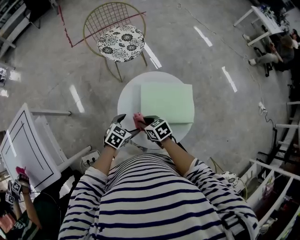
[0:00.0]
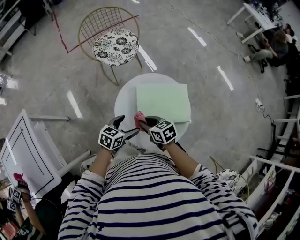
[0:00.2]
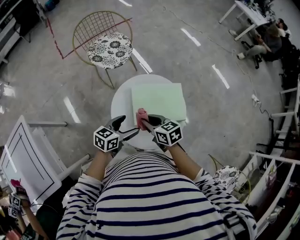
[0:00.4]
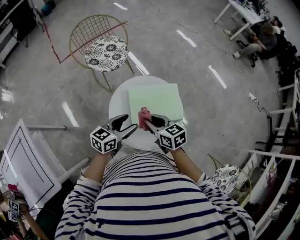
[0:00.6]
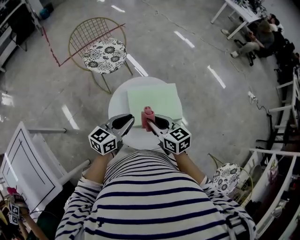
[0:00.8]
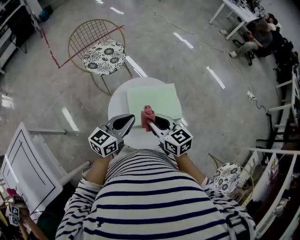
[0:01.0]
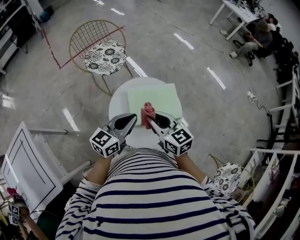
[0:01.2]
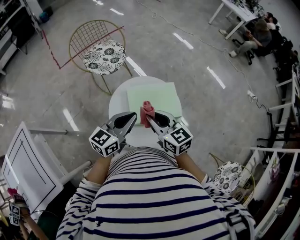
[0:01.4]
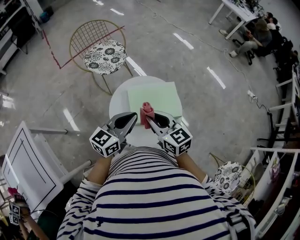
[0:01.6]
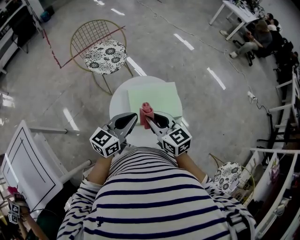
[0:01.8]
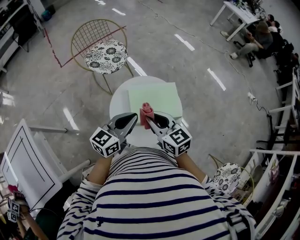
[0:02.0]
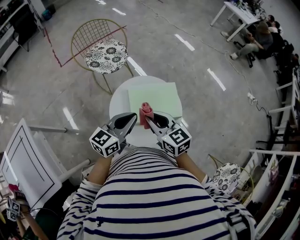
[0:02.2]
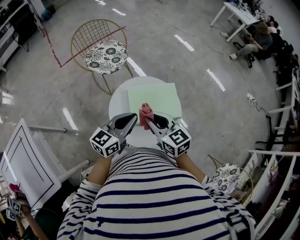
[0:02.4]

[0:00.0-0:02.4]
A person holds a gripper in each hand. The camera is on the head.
0:00.0 to 0:01.2: The right gripper shifts about 25 cm upward and to the right, and changes its angle by about 40 degrees. Meanwhile the left gripper heads upward, covering roughly 20 cm, tips its fingers upward by approximately 40 degrees, and closes its fingers.
0:01.2 to 0:02.4: There are only small adjustments of the grippers.

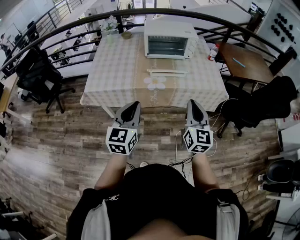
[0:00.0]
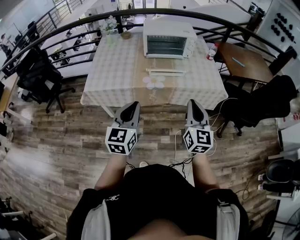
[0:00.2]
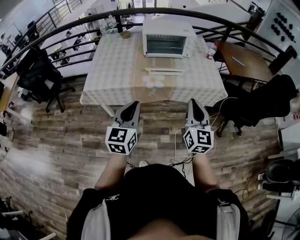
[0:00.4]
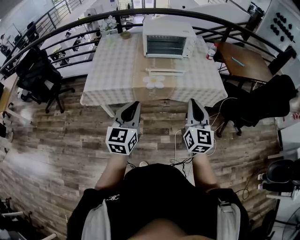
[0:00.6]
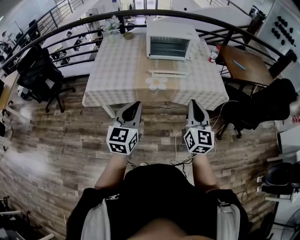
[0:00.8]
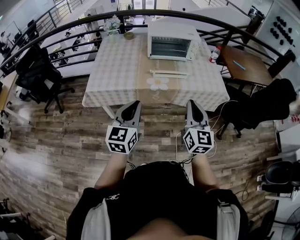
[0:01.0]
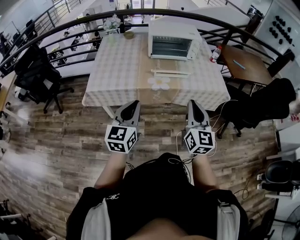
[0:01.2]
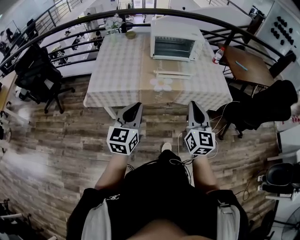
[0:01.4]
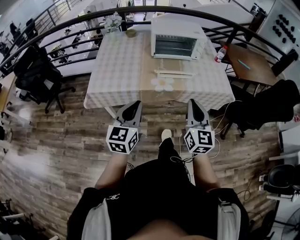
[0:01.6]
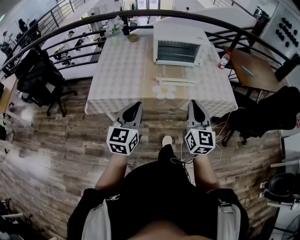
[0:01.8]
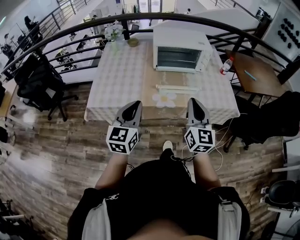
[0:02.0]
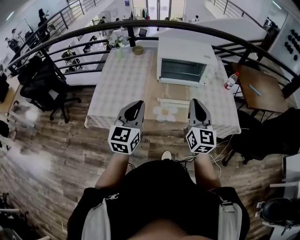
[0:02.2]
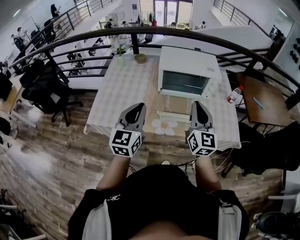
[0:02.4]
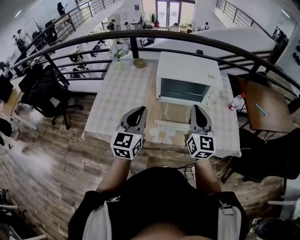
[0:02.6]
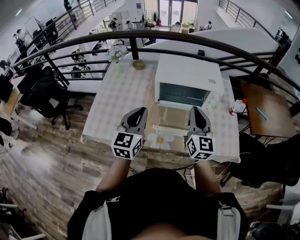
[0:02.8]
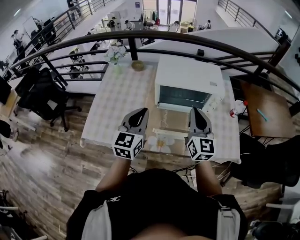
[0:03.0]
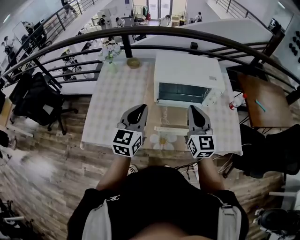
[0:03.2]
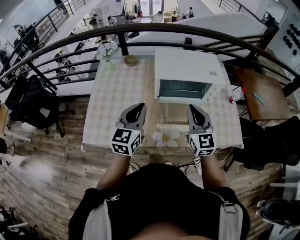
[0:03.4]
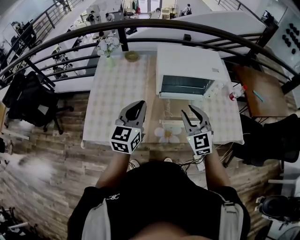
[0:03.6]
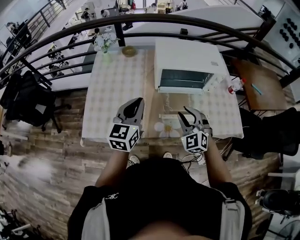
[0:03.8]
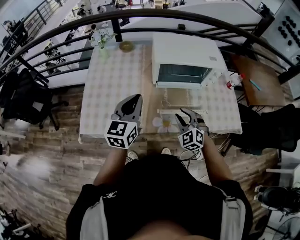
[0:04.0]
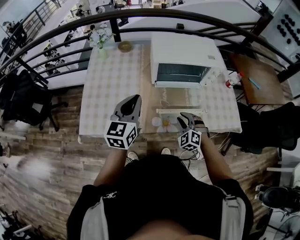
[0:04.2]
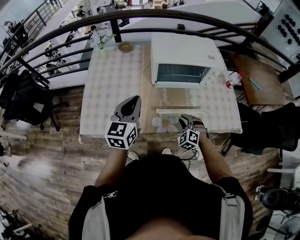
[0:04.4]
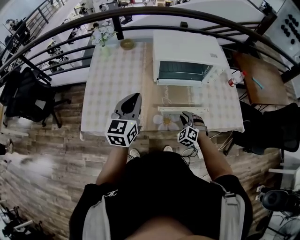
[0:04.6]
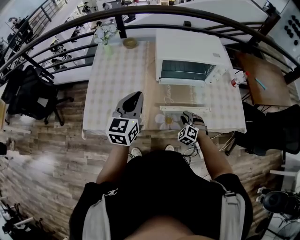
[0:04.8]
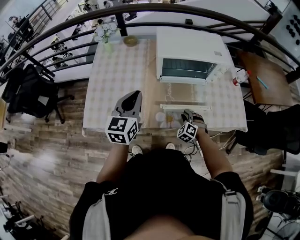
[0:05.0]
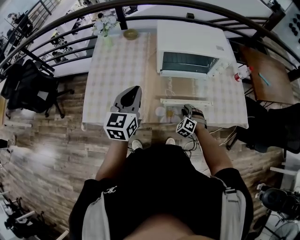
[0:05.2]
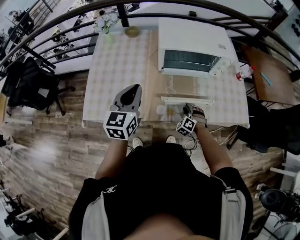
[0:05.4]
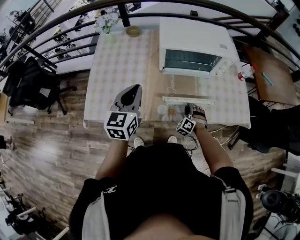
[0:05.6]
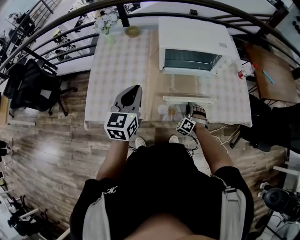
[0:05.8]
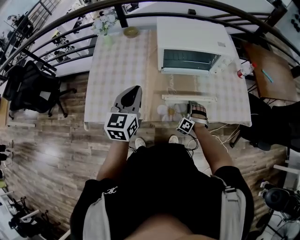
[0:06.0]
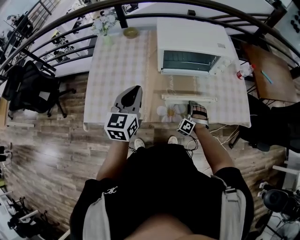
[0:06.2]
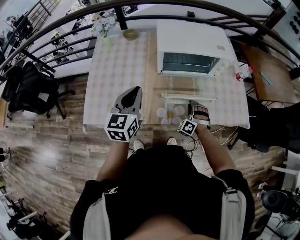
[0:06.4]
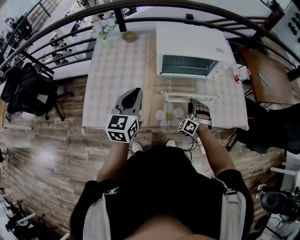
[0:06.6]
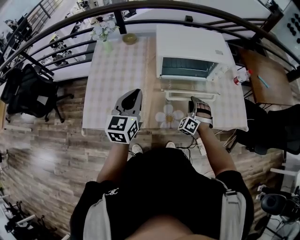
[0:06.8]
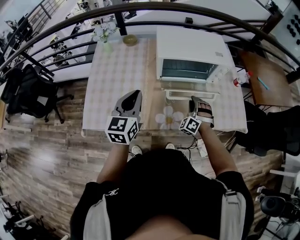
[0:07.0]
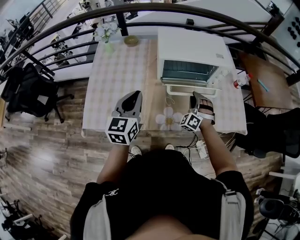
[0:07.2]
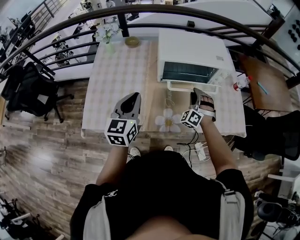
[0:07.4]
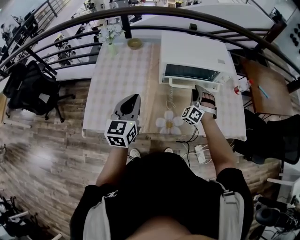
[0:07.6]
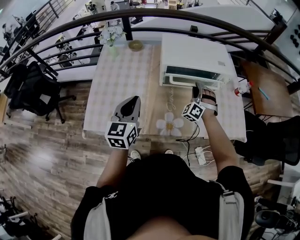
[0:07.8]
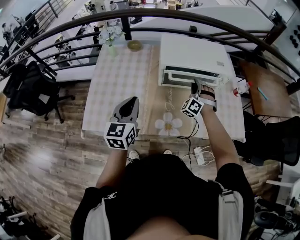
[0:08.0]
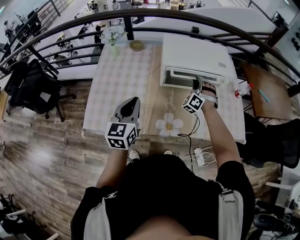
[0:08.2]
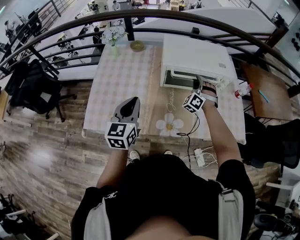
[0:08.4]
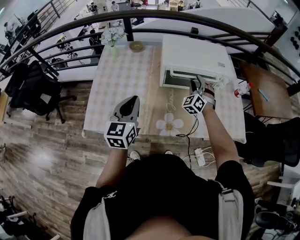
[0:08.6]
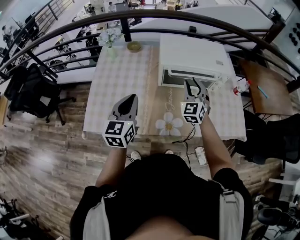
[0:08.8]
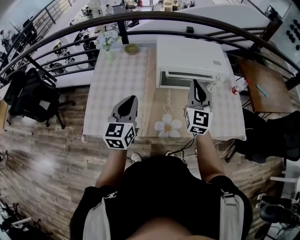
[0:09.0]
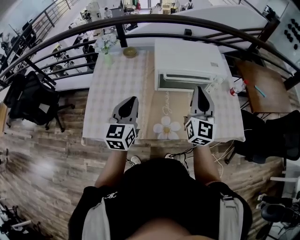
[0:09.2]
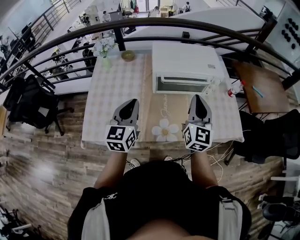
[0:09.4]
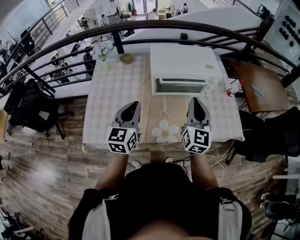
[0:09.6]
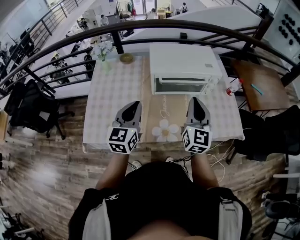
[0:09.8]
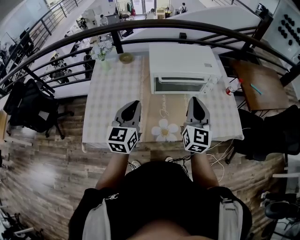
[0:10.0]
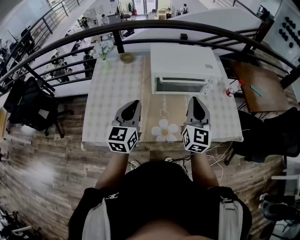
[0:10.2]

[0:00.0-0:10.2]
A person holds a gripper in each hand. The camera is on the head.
0:00.0 to 0:01.4: The left gripper changes place by some 5 cm; the right gripper travels to the left by approximately 5 cm.
0:01.4 to 0:03.0: Both grippers move forward, approximately 40 cm.
0:03.0 to 0:04.4: The left gripper moves to the left, roughly 5 cm. The right gripper travels downward by roughly 30 cm, tips its fingers downward by approximately 50 degrees, and opens.
0:04.4 to 0:05.8: The right gripper moves downward, roughly 10 cm, and turns by some 20 degrees.
0:05.8 to 0:07.2: The right gripper heads upward and forward, covering roughly 15 cm.
0:07.2 to 0:08.8: The right gripper shifts about 15 cm upward, and rotates around the line of its fingers by some 40 degrees, clockwise from behind.
0:08.8 to 0:10.2: The right gripper travels backward, upward and to the right by about 15 cm, changes its angle by about 40 degrees, and closes.

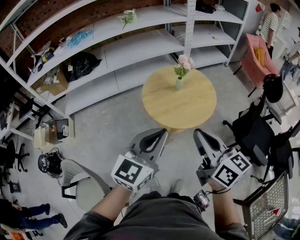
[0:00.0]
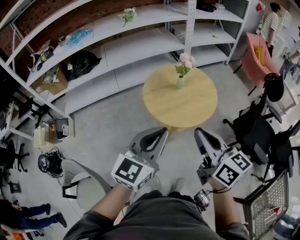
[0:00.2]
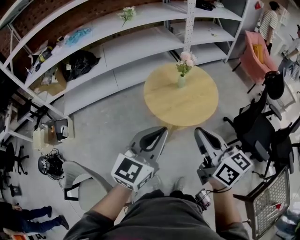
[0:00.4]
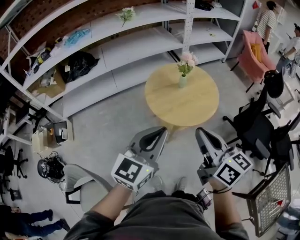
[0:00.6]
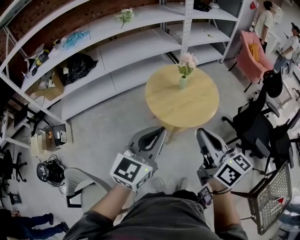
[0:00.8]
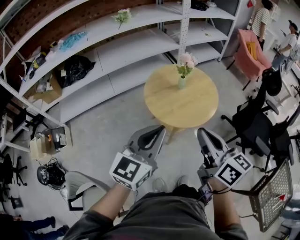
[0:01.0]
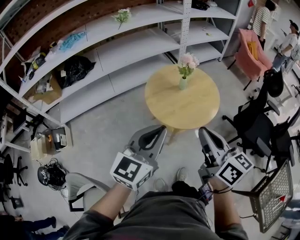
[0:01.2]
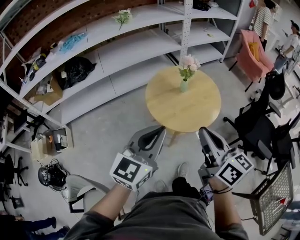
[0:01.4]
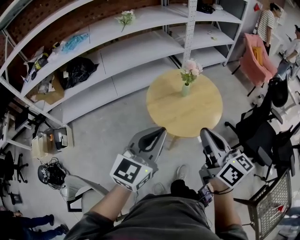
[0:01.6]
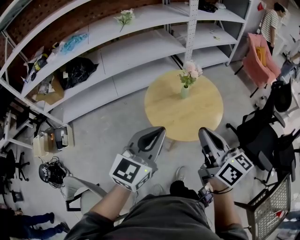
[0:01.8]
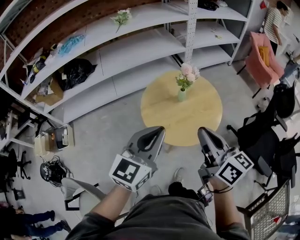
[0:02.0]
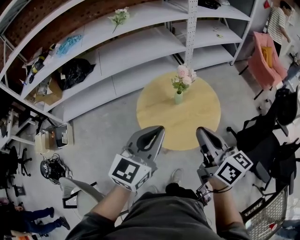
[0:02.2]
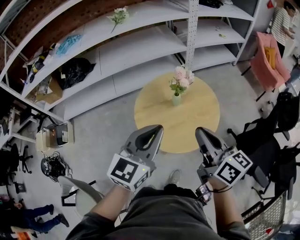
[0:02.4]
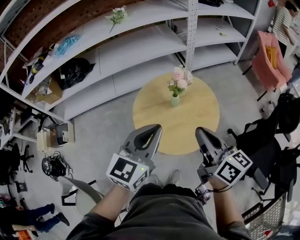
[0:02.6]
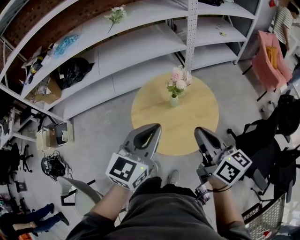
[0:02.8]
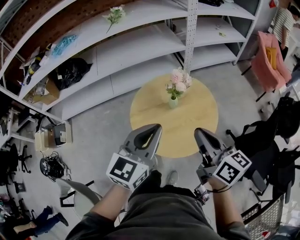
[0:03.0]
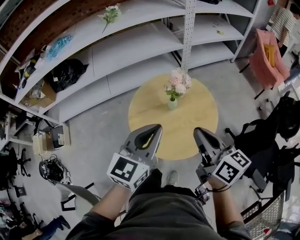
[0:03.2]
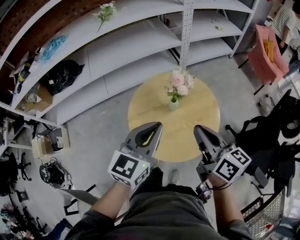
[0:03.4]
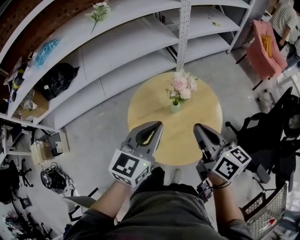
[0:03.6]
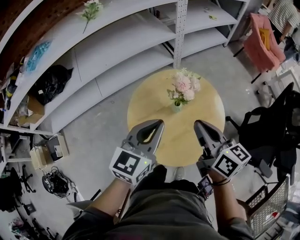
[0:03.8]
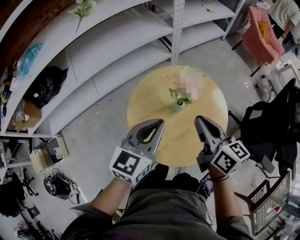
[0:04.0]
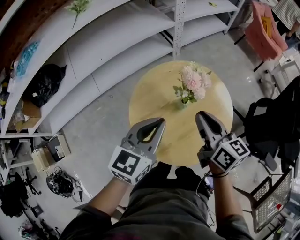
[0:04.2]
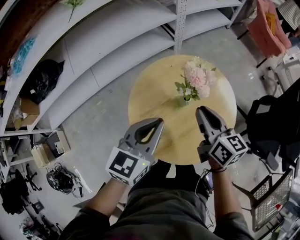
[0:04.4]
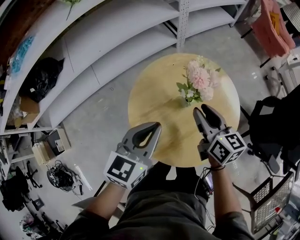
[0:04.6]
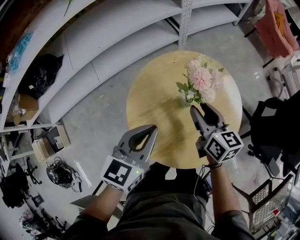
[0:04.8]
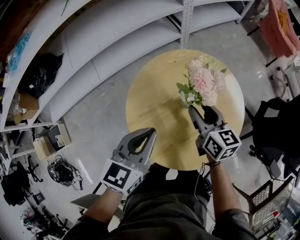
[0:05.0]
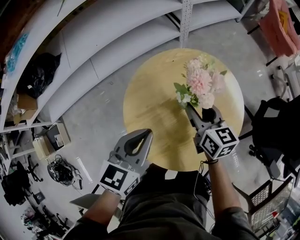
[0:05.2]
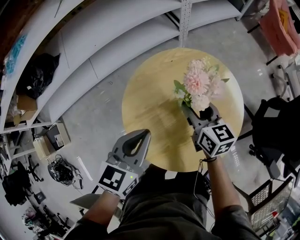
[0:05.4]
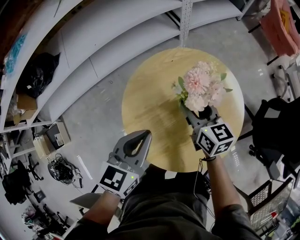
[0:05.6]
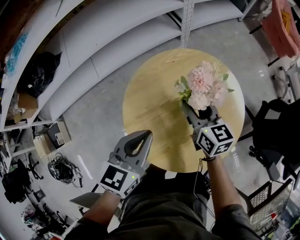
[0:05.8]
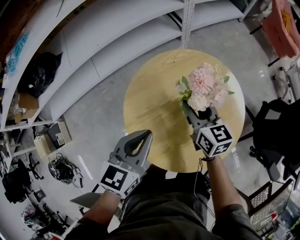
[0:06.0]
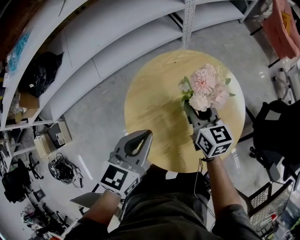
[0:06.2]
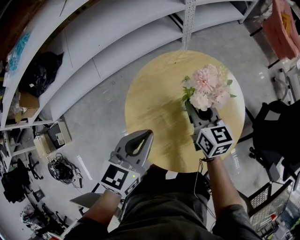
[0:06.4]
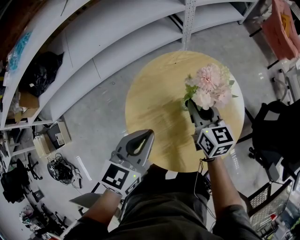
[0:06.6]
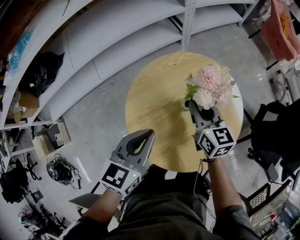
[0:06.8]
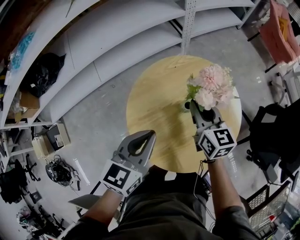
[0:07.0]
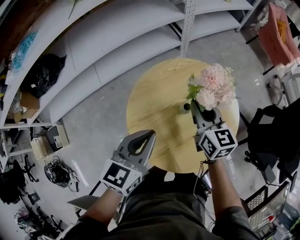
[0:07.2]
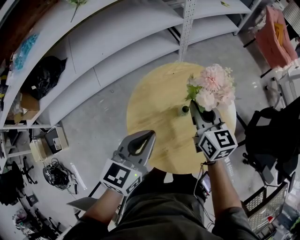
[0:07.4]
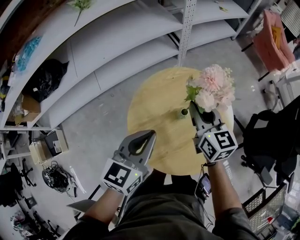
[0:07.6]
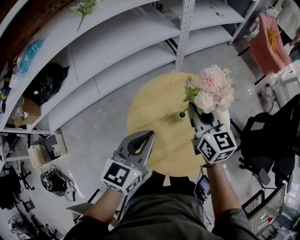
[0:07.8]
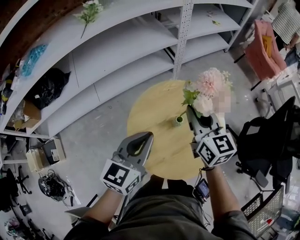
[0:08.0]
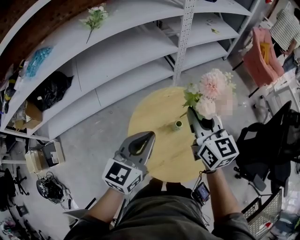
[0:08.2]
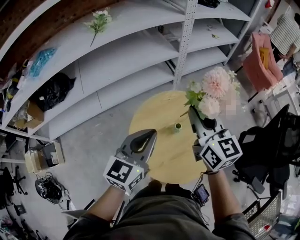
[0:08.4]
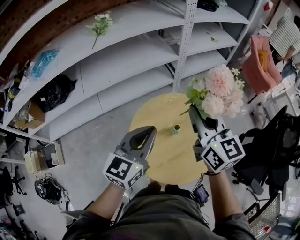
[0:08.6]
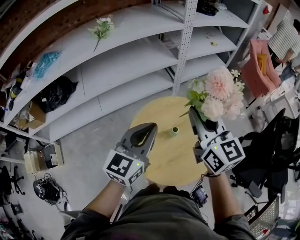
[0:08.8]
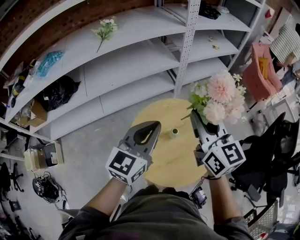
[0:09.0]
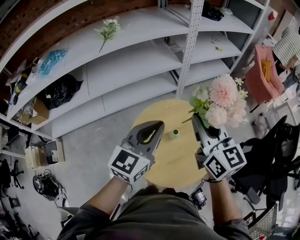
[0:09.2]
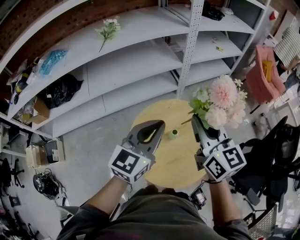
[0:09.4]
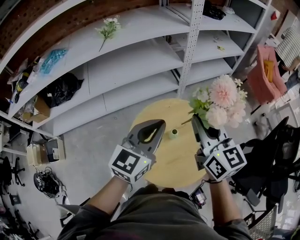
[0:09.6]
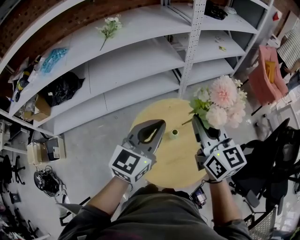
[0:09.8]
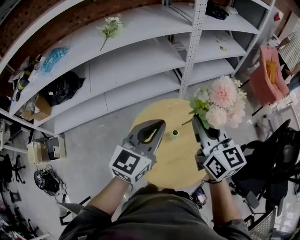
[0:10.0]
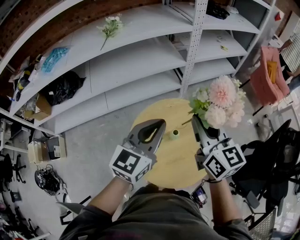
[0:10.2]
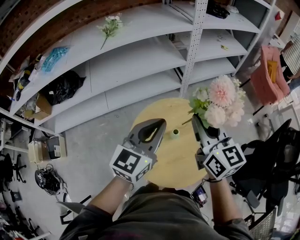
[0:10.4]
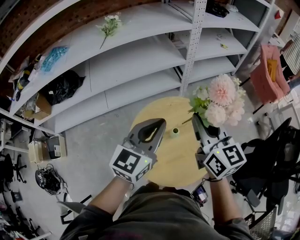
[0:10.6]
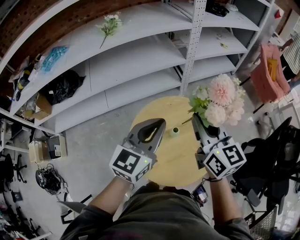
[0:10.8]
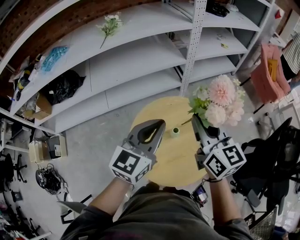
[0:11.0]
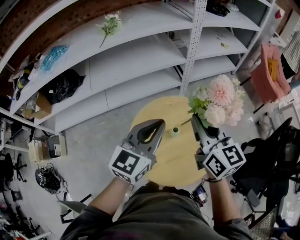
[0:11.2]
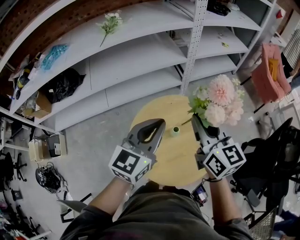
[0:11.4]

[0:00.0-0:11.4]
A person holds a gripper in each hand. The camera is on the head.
0:00.0 to 0:01.4: The right gripper heads to the left, covering some 5 cm. The left gripper moves to the left and forward, approximately 10 cm.
0:01.4 to 0:02.8: The two grippers go roughly 25 cm forward and to the right.
0:02.8 to 0:04.2: Both grippers travel together forward and downward, some 20 cm.
0:04.2 to 0:05.6: The right gripper is displaced downward and forward by about 15 cm, and opens. The left gripper shifts approximately 10 cm downward.
0:05.6 to 0:07.2: The right gripper shifts approximately 5 cm upward, and closes.
0:07.2 to 0:08.6: The left gripper goes some 15 cm upward. Meanwhile the right gripper is displaced upward by about 25 cm.
0:08.6 to 0:10.0: The left gripper moves roughly 5 cm.
0:10.0 to 0:11.4: The grippers stay close to where they were, moving slightly.
